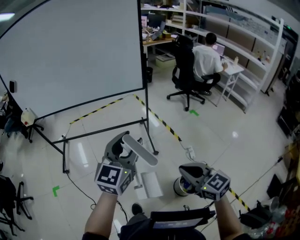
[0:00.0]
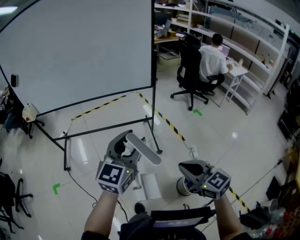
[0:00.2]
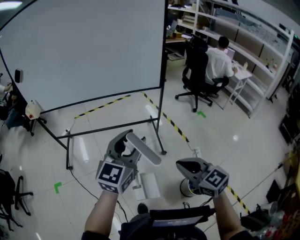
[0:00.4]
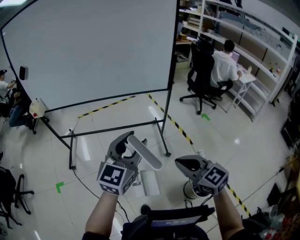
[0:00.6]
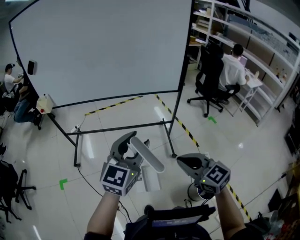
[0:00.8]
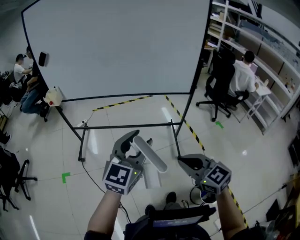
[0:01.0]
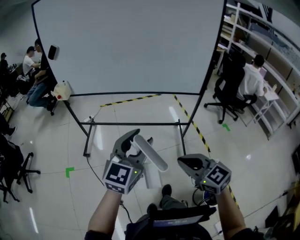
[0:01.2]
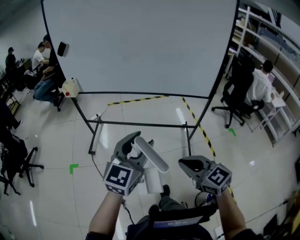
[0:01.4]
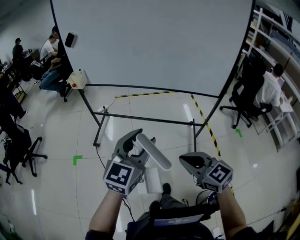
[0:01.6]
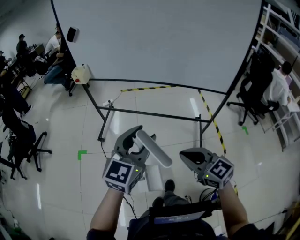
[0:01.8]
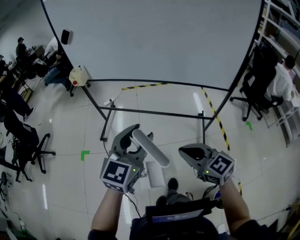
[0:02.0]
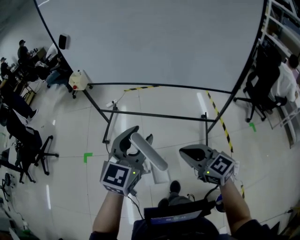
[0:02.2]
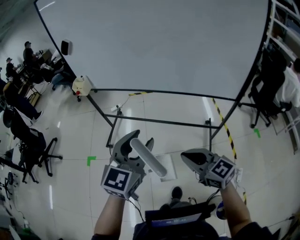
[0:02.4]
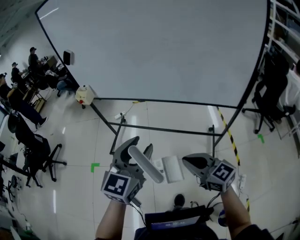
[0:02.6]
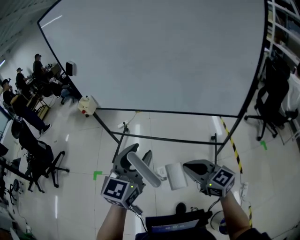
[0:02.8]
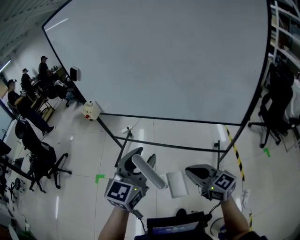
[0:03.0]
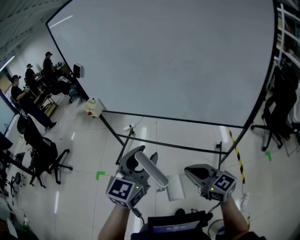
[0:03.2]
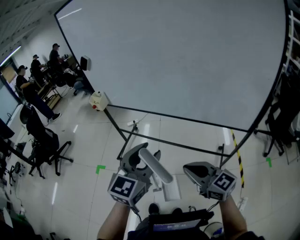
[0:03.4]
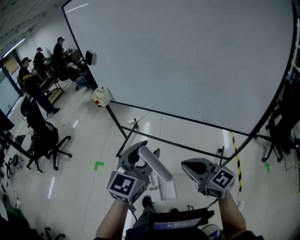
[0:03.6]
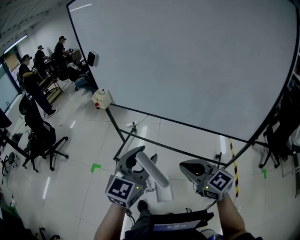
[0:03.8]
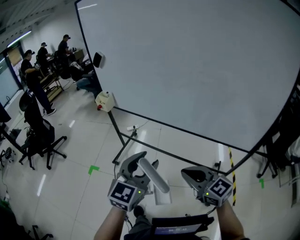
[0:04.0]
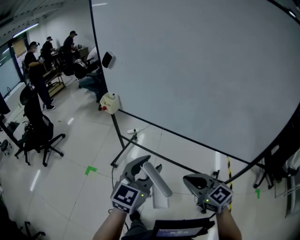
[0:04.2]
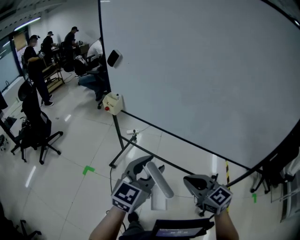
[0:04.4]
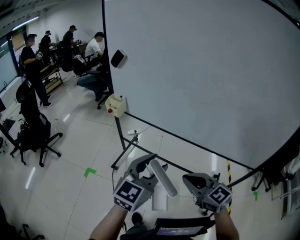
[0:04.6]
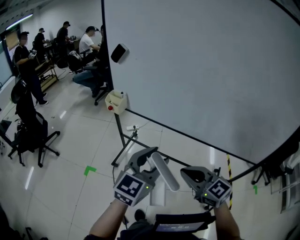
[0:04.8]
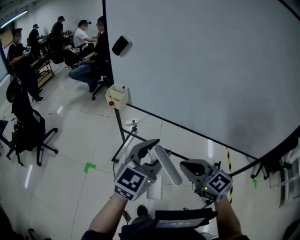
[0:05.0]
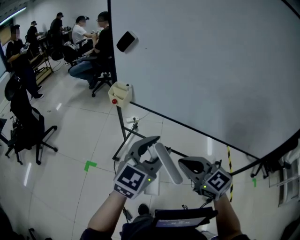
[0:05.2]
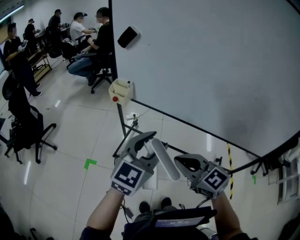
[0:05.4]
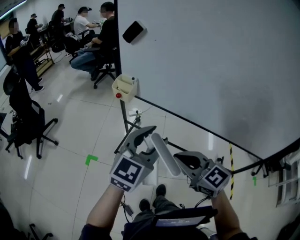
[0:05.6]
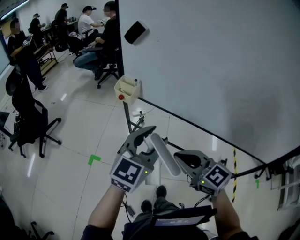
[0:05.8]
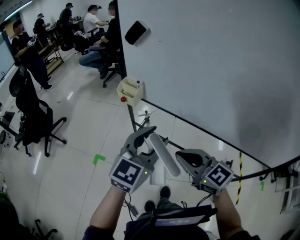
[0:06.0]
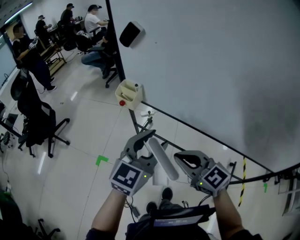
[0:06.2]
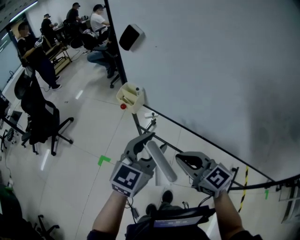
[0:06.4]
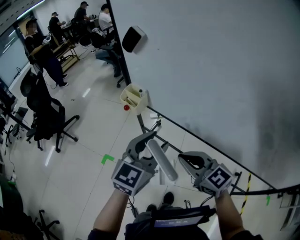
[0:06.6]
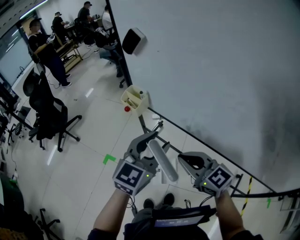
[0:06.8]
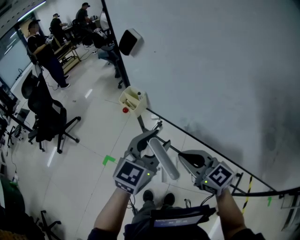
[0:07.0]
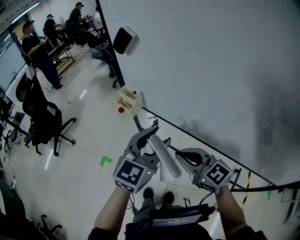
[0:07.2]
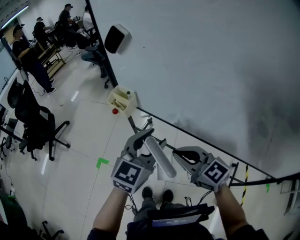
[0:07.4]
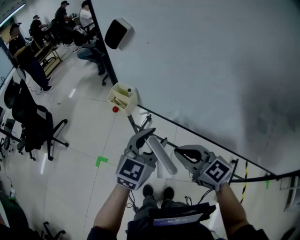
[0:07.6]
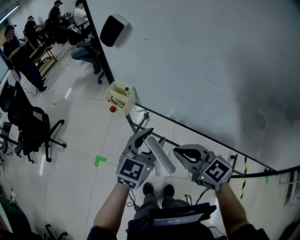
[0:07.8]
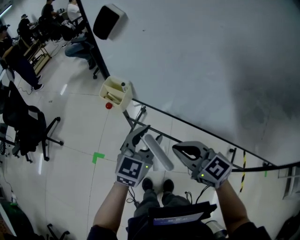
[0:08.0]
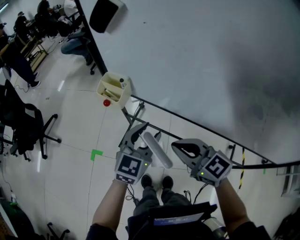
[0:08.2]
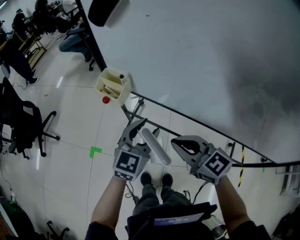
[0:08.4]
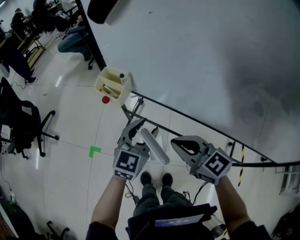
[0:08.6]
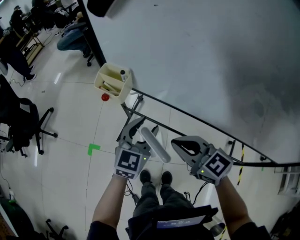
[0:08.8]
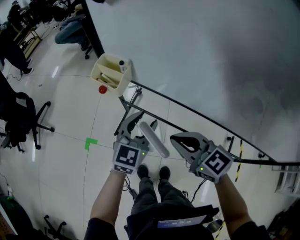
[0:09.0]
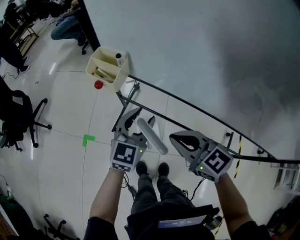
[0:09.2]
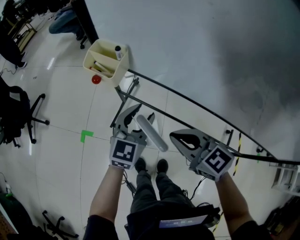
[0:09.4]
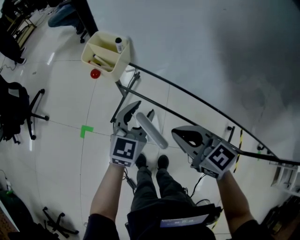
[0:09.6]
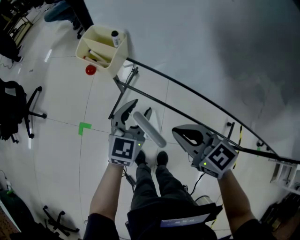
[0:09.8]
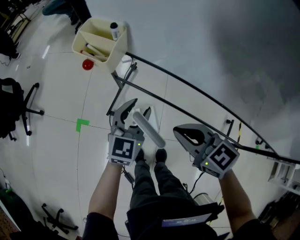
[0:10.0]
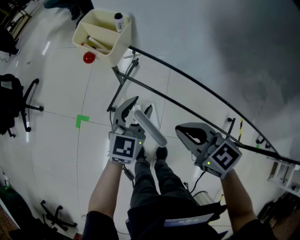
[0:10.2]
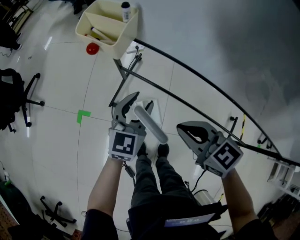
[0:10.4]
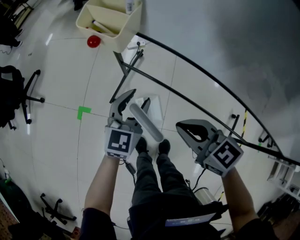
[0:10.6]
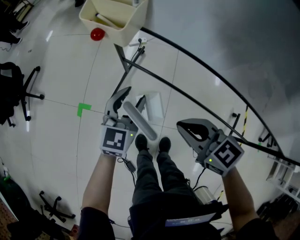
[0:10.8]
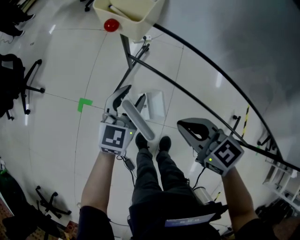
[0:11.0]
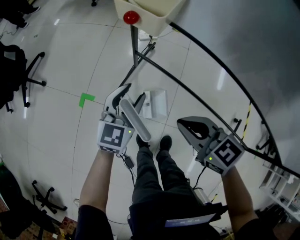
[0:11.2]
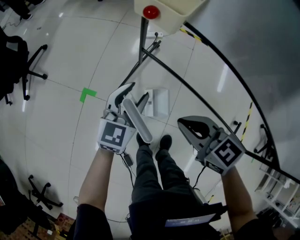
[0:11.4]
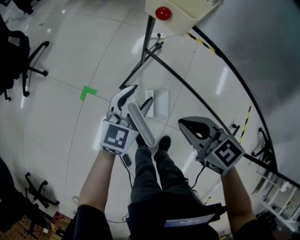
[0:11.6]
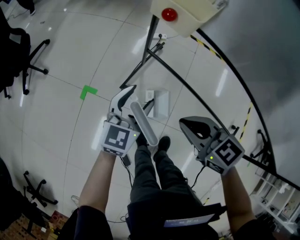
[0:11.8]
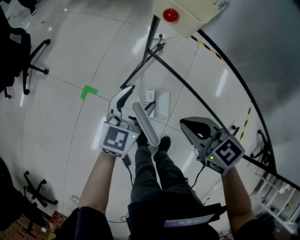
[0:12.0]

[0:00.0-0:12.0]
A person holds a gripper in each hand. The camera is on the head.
0:00.0 to 0:01.6: The right gripper travels to the left and forward by approximately 35 cm, and turns by roughly 30 degrees. The left gripper moves to the left, approximately 30 cm.
0:01.6 to 0:03.0: Both grippers travel together forward and to the right, roughly 15 cm.
0:03.0 to 0:04.4: The left gripper is displaced to the left and forward by approximately 10 cm; the right gripper moves forward and to the left, about 15 cm.
0:04.4 to 0:06.0: The left gripper is displaced forward and to the left by approximately 25 cm. Meanwhile the right gripper travels to the left and forward by roughly 25 cm.
0:06.0 to 0:07.6: The left gripper travels forward and downward by roughly 10 cm, while the right gripper travels forward by about 10 cm.
0:07.6 to 0:09.0: The right gripper travels downward by approximately 5 cm. Meanwhile the left gripper shifts some 15 cm downward and forward.
0:09.0 to 0:10.4: The two grippers go about 10 cm downward.
0:10.4 to 0:12.0: Both grippers travel together to the left, approximately 15 cm.

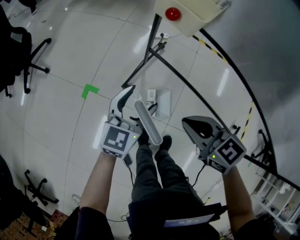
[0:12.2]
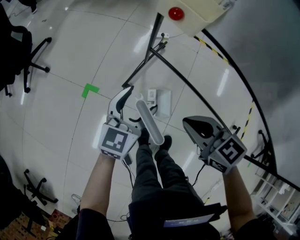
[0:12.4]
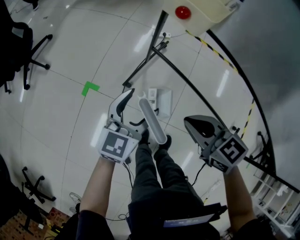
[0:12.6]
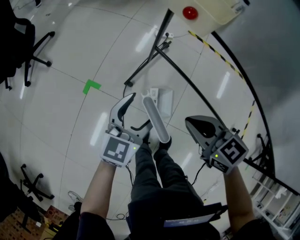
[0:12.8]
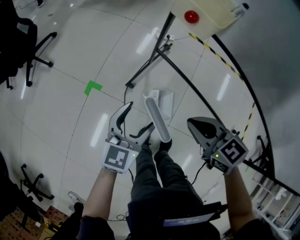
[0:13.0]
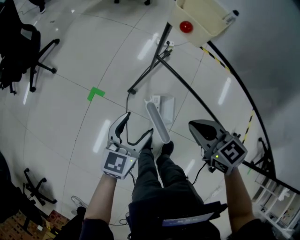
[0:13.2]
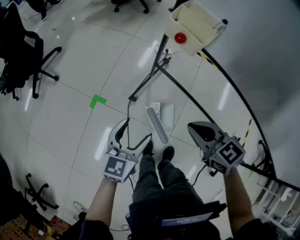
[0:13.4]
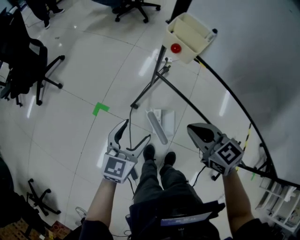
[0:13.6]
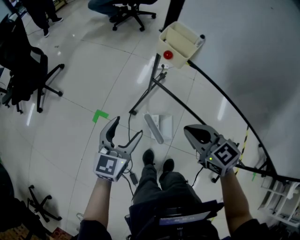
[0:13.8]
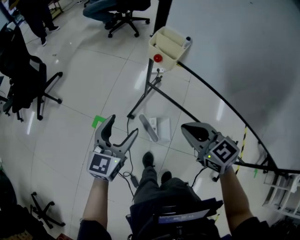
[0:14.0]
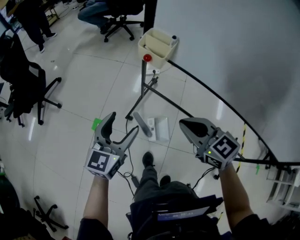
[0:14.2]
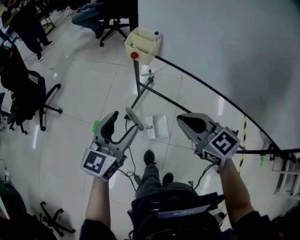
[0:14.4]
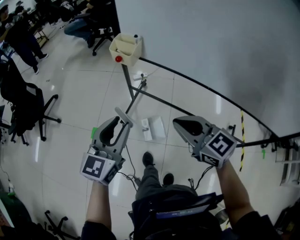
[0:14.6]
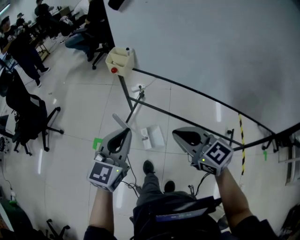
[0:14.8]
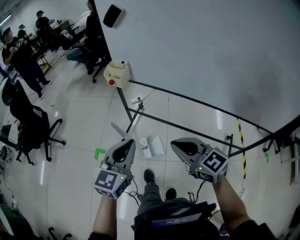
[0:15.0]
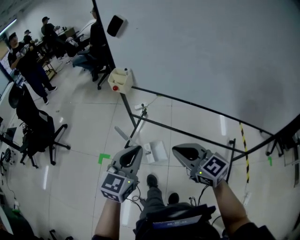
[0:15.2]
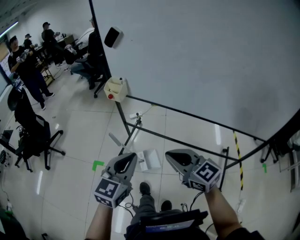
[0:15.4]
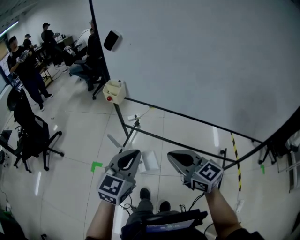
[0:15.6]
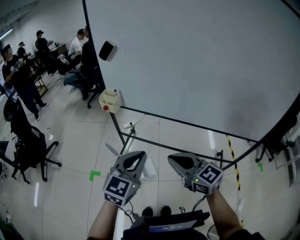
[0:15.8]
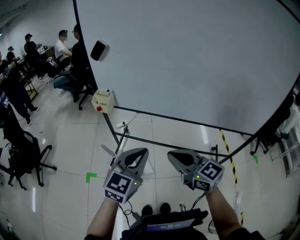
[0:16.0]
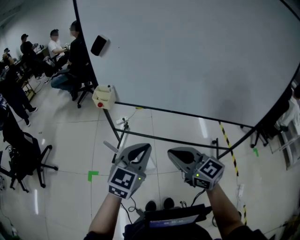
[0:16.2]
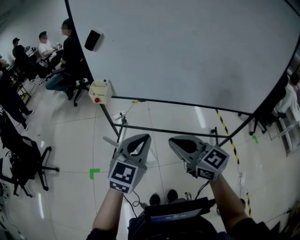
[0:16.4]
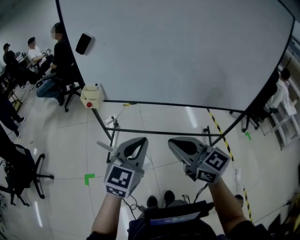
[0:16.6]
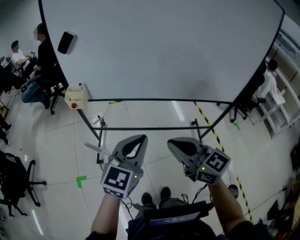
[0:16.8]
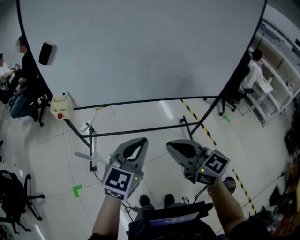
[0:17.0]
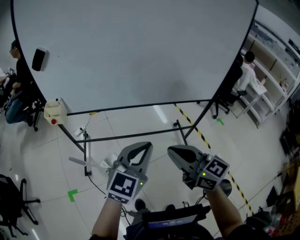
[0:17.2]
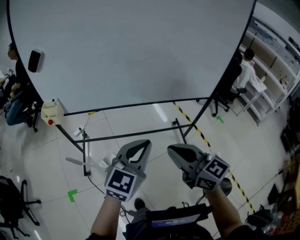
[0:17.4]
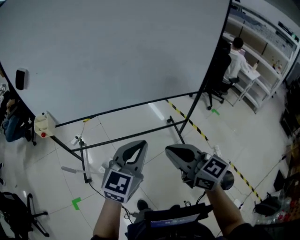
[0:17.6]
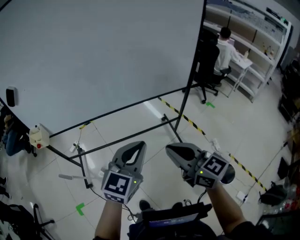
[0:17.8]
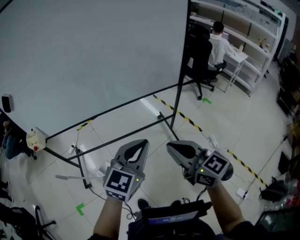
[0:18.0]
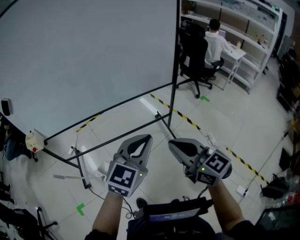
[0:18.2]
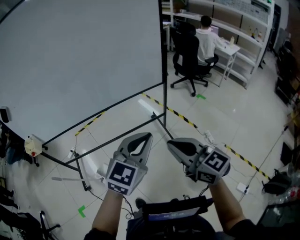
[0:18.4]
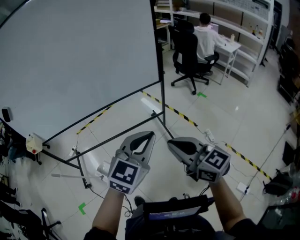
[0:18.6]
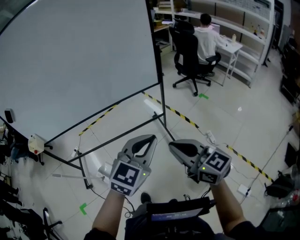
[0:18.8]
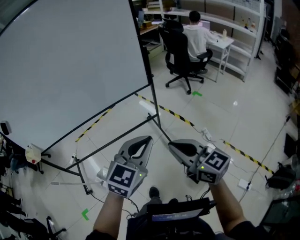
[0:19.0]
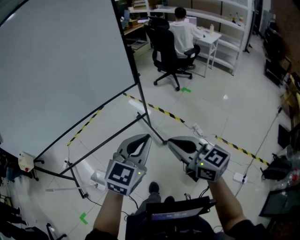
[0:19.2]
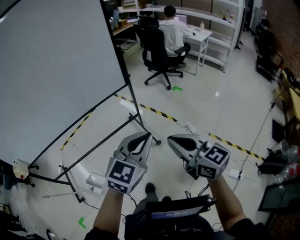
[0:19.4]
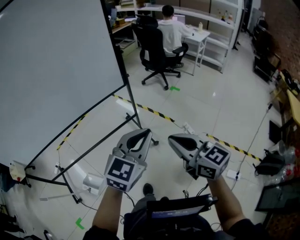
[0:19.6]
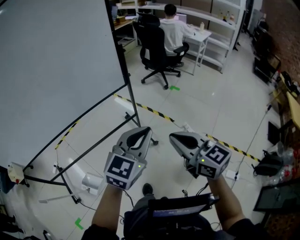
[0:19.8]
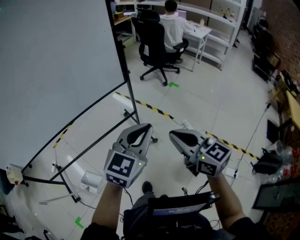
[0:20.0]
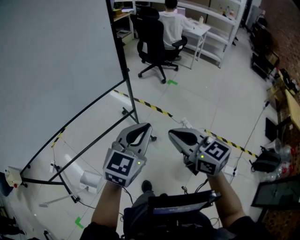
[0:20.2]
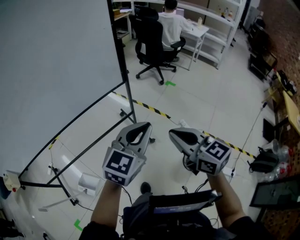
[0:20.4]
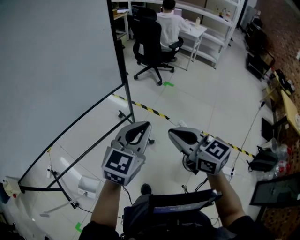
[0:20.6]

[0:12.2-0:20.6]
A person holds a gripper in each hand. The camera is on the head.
0:12.2 to 0:13.6: The left gripper goes roughly 10 cm to the left, backward and upward, while the right gripper heads upward, covering roughly 5 cm.
0:13.6 to 0:15.0: The right gripper shifts approximately 25 cm backward, upward and to the right, and rotates approximately 20 degrees; the left gripper shifts approximately 30 cm upward, backward and to the right, and closes.
0:15.0 to 0:16.4: The right gripper moves upward, about 10 cm, while the left gripper is displaced to the right and upward by roughly 10 cm, and swivels roughly 20 degrees.
0:16.4 to 0:17.8: The left gripper shifts by some 25 cm, and changes its angle by some 30 degrees. Meanwhile the right gripper shifts by roughly 25 cm, and changes its angle by some 30 degrees.
0:17.8 to 0:19.2: Both grippers move to the right, some 30 cm.
0:19.2 to 0:20.6: Both grippers travel together forward, roughly 15 cm.

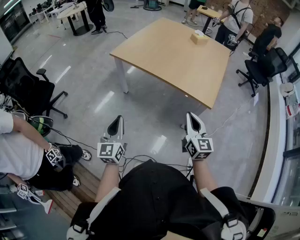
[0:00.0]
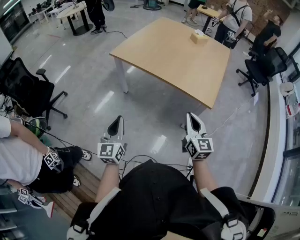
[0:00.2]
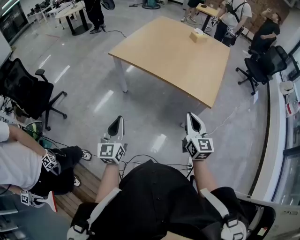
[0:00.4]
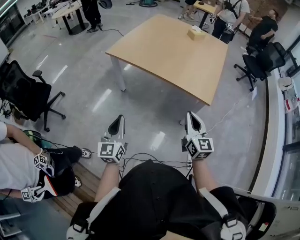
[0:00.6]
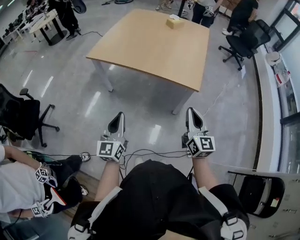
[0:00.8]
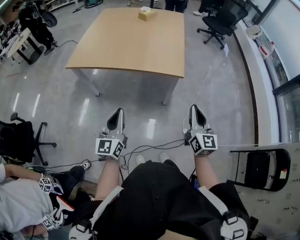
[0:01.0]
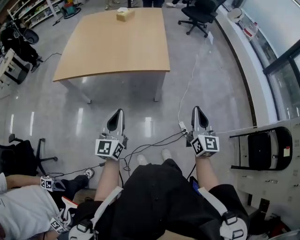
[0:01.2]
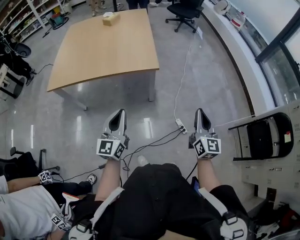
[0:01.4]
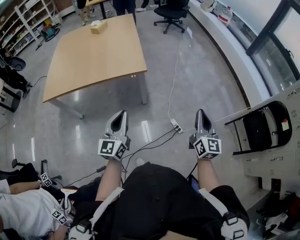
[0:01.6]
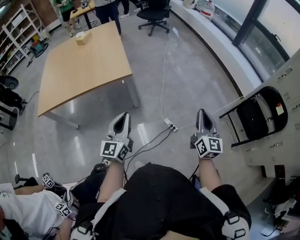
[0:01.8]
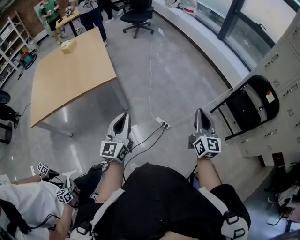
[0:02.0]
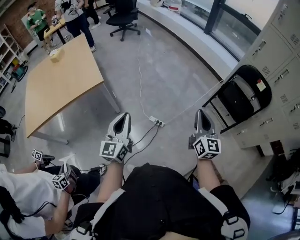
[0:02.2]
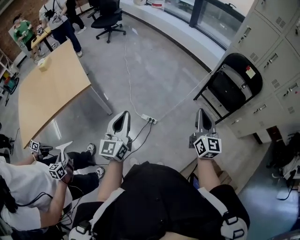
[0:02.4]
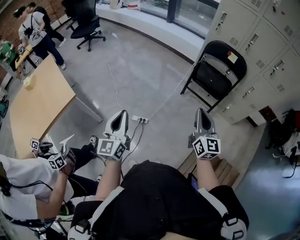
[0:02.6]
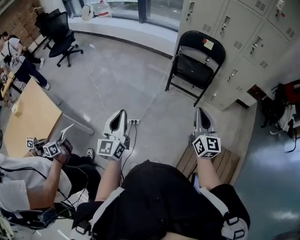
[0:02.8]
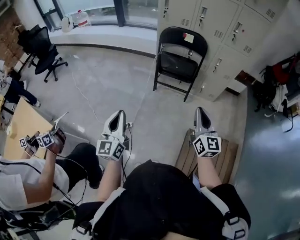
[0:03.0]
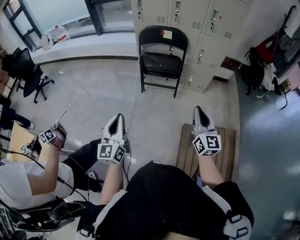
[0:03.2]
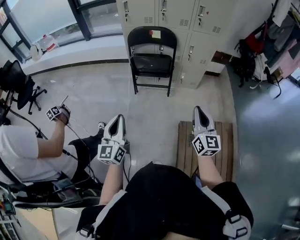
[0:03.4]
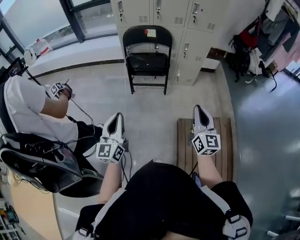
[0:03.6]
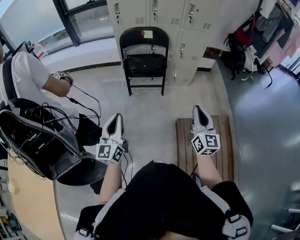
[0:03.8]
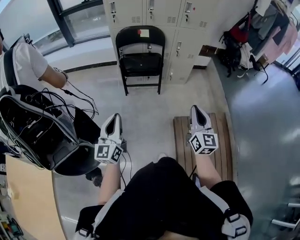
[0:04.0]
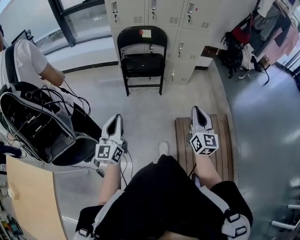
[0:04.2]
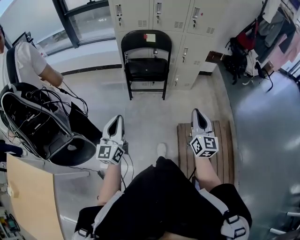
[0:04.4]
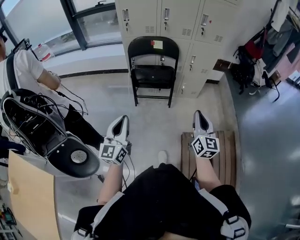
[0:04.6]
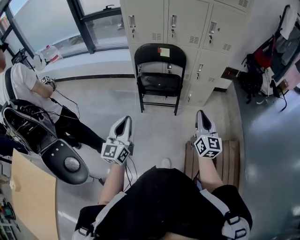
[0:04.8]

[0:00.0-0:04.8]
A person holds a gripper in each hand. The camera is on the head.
0:00.0 to 0:01.6: The right gripper changes place by roughly 35 cm, and turns by roughly 50 degrees. Meanwhile the left gripper ends up approximately 25 cm from where it was, and turns by some 50 degrees.
0:01.6 to 0:03.2: The pair of grippers is taken about 50 cm. The left gripper turns by roughly 60 degrees. Meanwhile the right gripper changes its angle by some 60 degrees.
0:03.2 to 0:04.8: The left gripper swings forward and backward, roughly 15 cm each way, with 2 reversals, while the right gripper goes some 15 cm forward.
